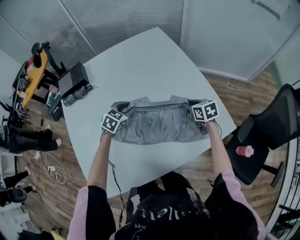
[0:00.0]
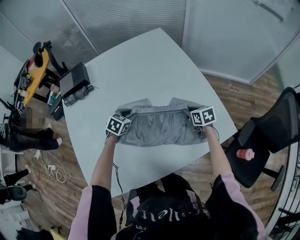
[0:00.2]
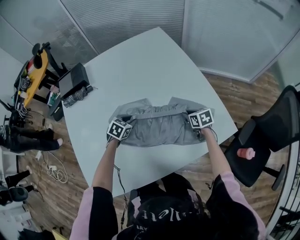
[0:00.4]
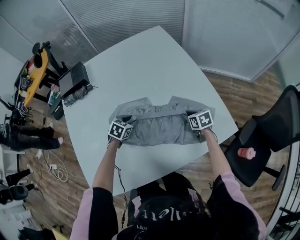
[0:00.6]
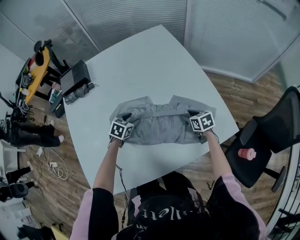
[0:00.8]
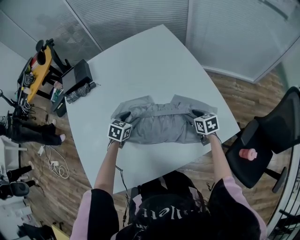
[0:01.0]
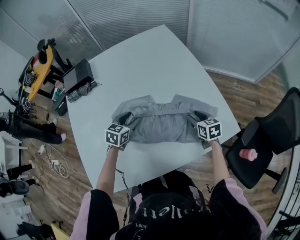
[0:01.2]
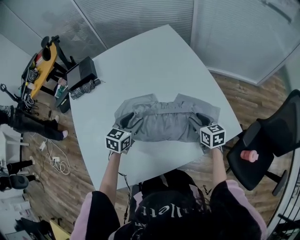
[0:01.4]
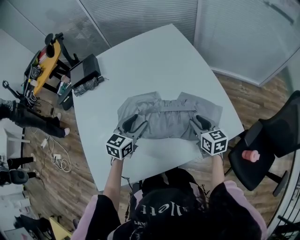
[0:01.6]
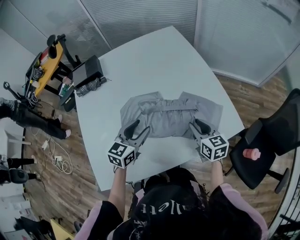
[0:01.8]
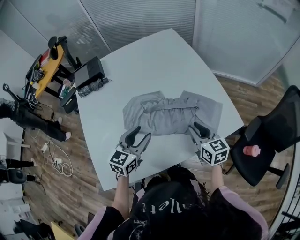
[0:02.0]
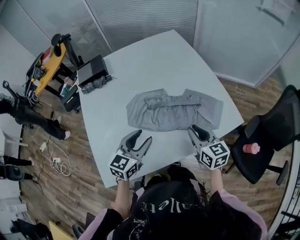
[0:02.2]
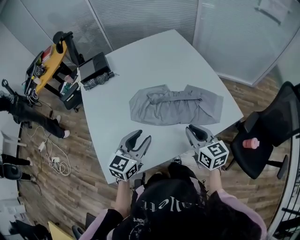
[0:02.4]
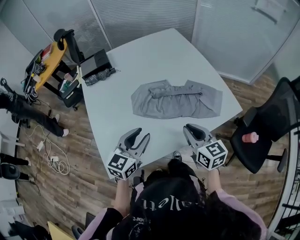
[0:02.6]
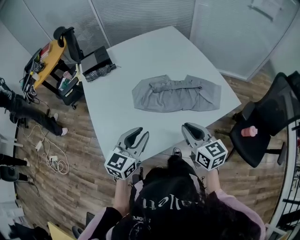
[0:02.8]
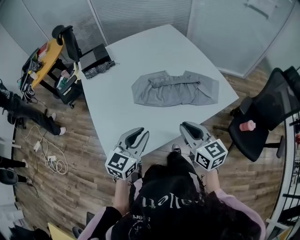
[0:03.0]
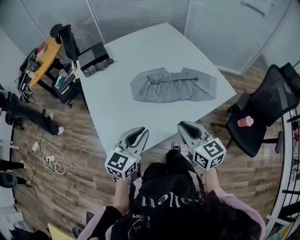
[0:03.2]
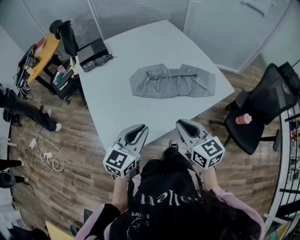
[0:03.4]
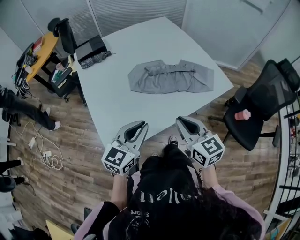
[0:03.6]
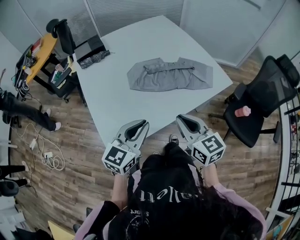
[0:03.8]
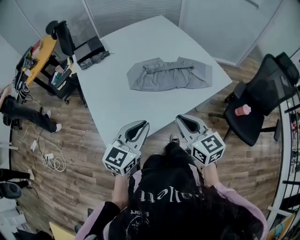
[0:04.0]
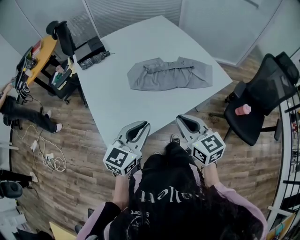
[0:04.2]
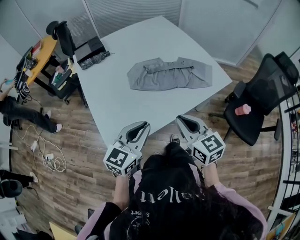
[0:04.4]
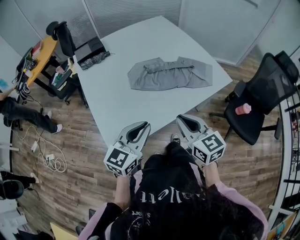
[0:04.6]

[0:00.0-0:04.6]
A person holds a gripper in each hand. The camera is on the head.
0:00.0 to 0:01.6: The left gripper shifts about 15 cm backward and upward, swivels approximately 30 degrees, and opens its fingers. Meanwhile the right gripper travels backward by approximately 10 cm, and goes downward and returns, some 10 cm each way.
0:01.6 to 0:03.0: The right gripper goes approximately 35 cm backward, to the left and upward, and closes. Meanwhile the left gripper shifts roughly 25 cm backward, and closes.
0:03.0 to 0:04.6: Both grippers move backward, some 5 cm.

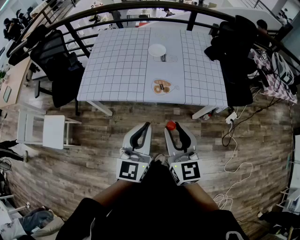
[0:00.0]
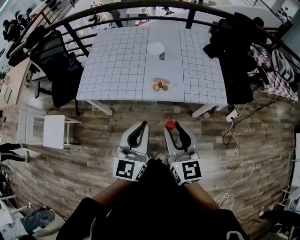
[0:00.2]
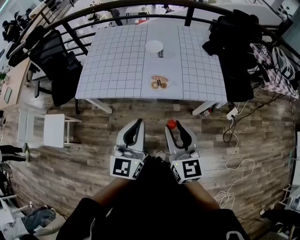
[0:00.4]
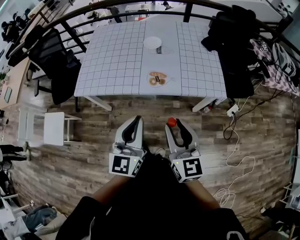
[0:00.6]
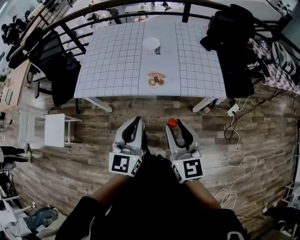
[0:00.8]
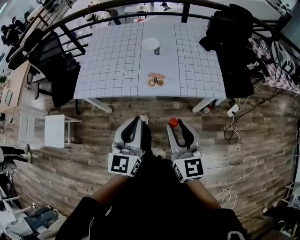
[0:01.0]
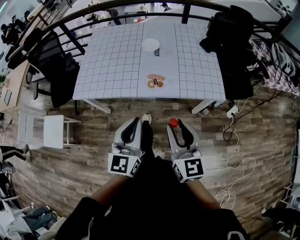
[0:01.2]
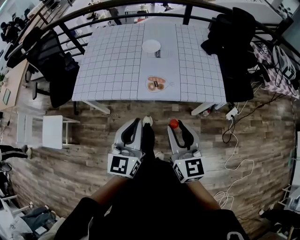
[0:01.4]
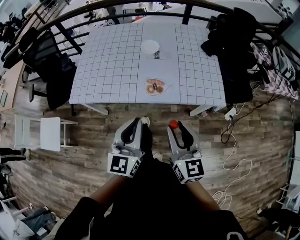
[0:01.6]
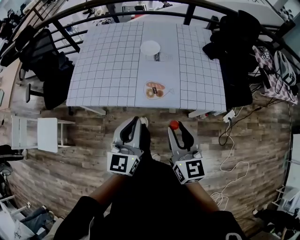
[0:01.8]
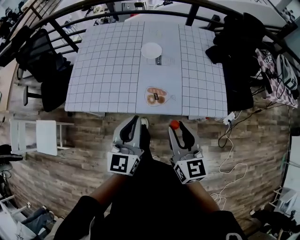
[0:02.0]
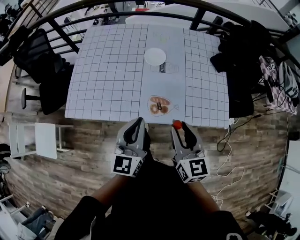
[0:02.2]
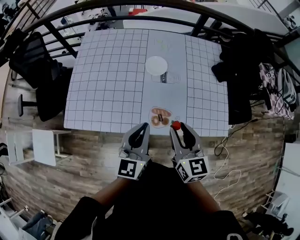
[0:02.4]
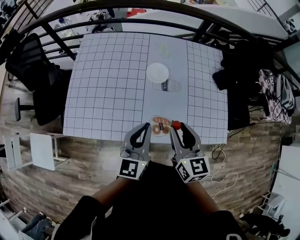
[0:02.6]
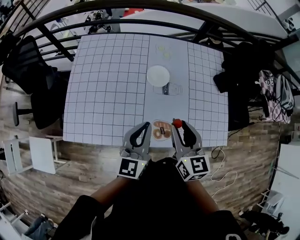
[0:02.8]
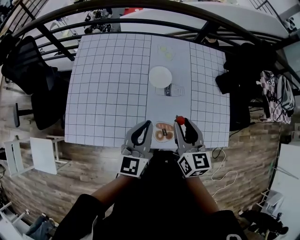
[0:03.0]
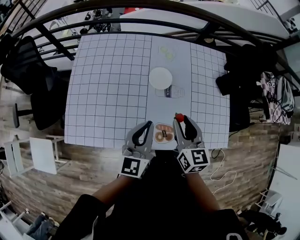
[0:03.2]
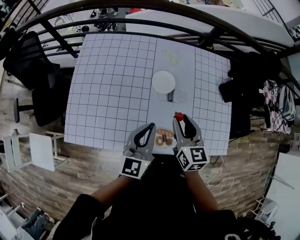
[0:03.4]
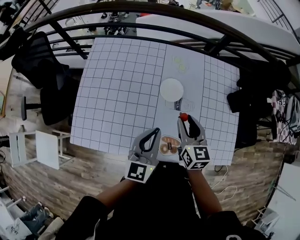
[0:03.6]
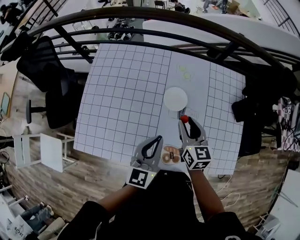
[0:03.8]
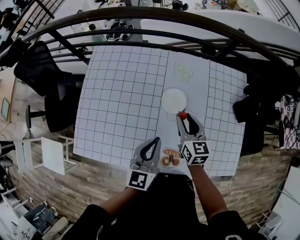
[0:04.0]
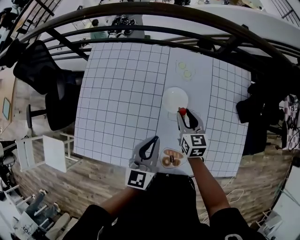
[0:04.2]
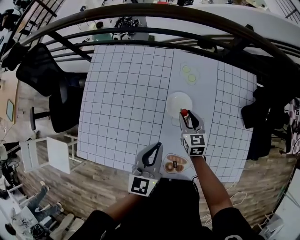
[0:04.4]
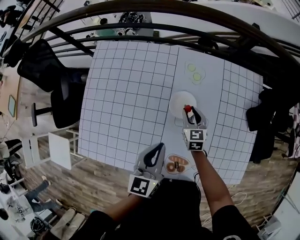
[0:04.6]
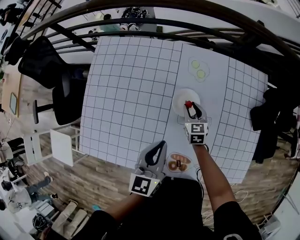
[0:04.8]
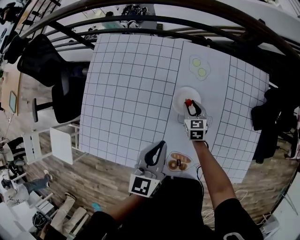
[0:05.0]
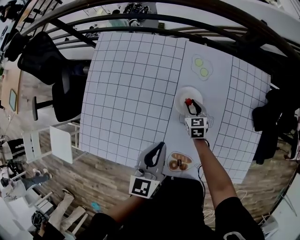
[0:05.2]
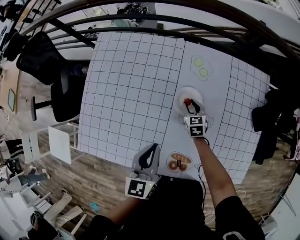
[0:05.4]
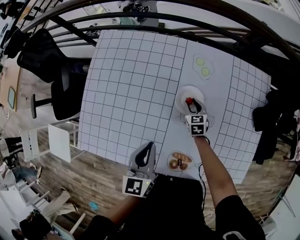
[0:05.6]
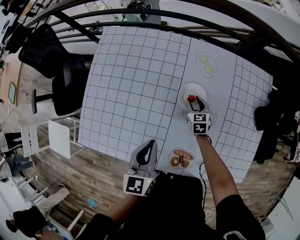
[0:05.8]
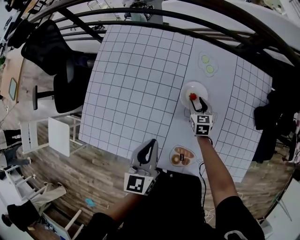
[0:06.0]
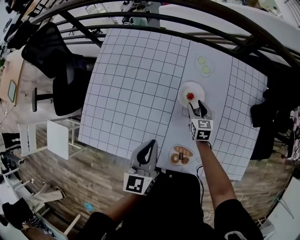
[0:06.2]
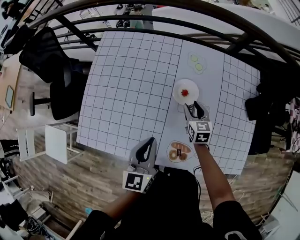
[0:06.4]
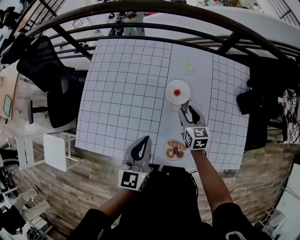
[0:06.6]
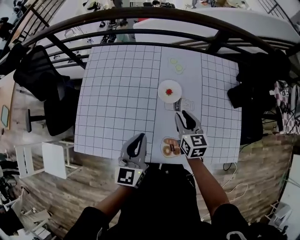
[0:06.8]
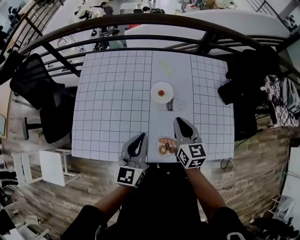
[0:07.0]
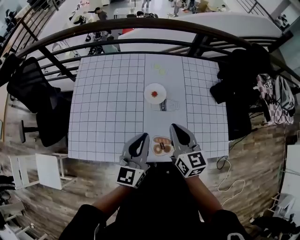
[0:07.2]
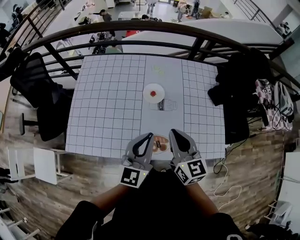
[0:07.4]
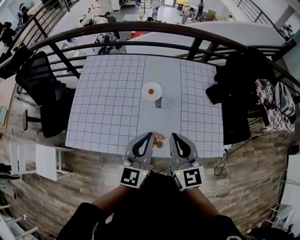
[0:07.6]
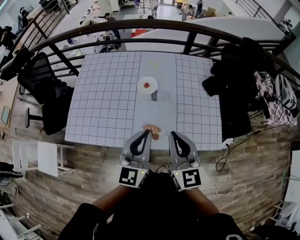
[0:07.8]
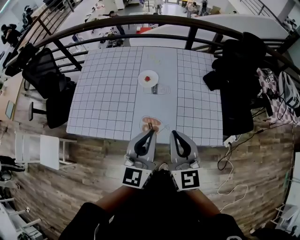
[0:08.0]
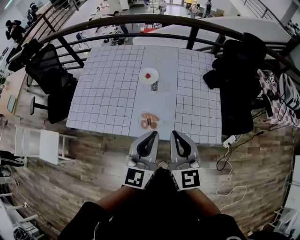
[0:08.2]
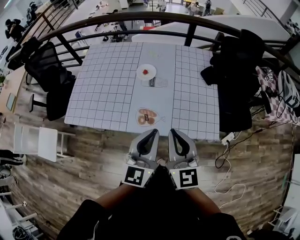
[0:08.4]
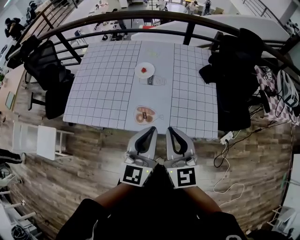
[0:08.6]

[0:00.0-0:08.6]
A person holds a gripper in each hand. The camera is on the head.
0:00.0 to 0:01.4: The right gripper heads to the right, covering about 5 cm.
0:01.4 to 0:02.8: Both grippers move forward, some 35 cm.
0:02.8 to 0:04.4: The left gripper is displaced forward and downward by approximately 15 cm. The right gripper goes roughly 35 cm forward and downward.
0:04.4 to 0:05.8: The right gripper moves downward, approximately 15 cm; the left gripper moves to the left, about 5 cm.
0:05.8 to 0:07.2: The left gripper heads upward, backward and to the right, covering approximately 15 cm, and turns by approximately 30 degrees. Meanwhile the right gripper is displaced upward and backward by approximately 40 cm, turns by roughly 30 degrees, and closes its fingers.
0:07.2 to 0:08.6: The grippers both shift backward and to the right by about 25 cm.

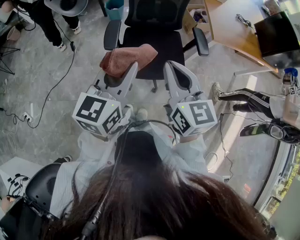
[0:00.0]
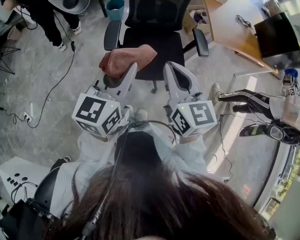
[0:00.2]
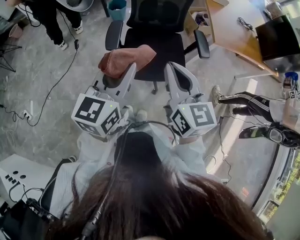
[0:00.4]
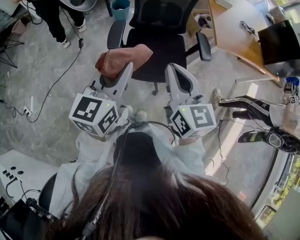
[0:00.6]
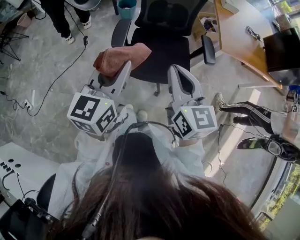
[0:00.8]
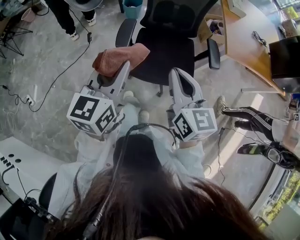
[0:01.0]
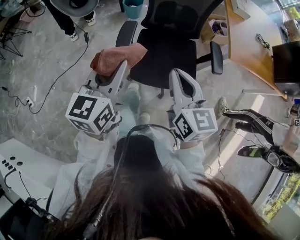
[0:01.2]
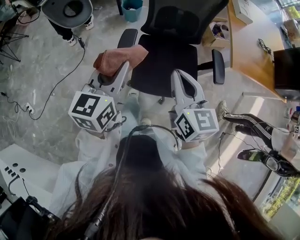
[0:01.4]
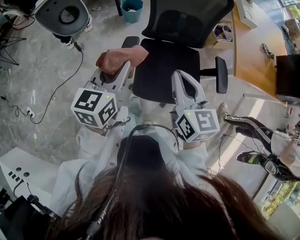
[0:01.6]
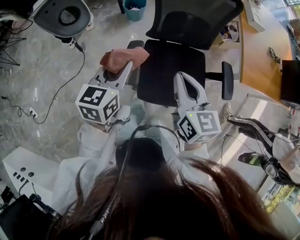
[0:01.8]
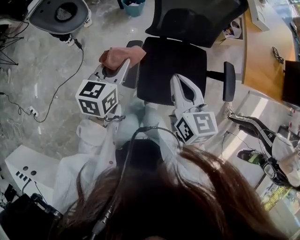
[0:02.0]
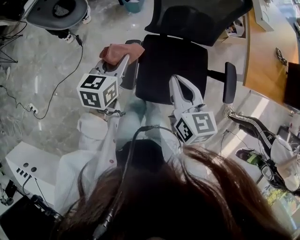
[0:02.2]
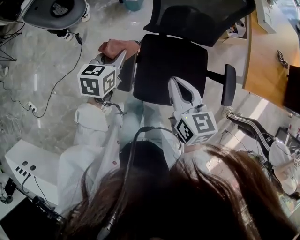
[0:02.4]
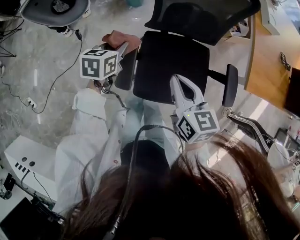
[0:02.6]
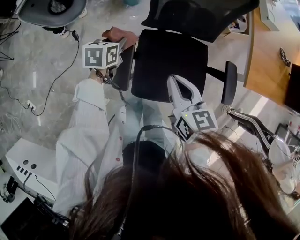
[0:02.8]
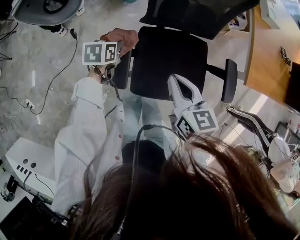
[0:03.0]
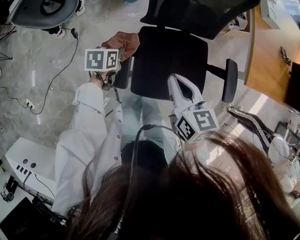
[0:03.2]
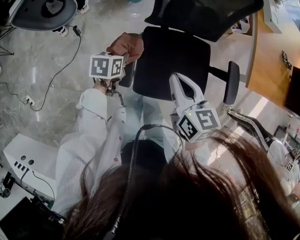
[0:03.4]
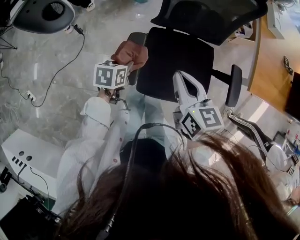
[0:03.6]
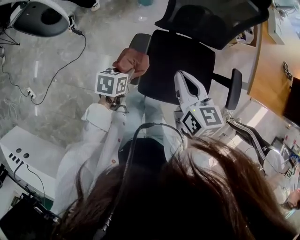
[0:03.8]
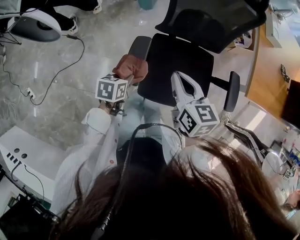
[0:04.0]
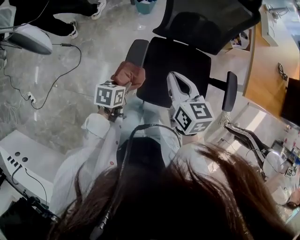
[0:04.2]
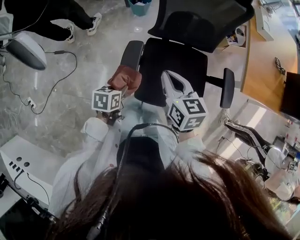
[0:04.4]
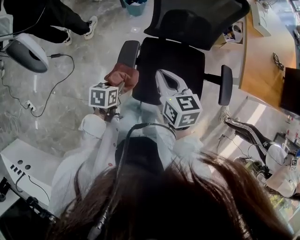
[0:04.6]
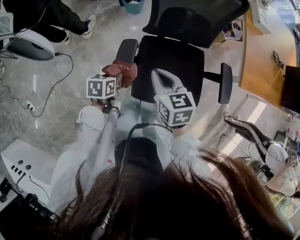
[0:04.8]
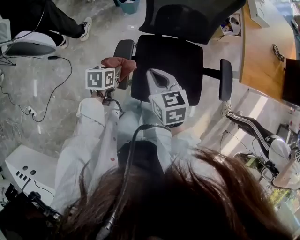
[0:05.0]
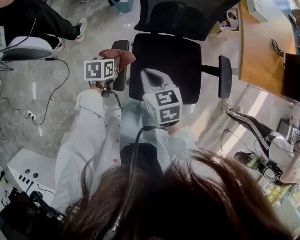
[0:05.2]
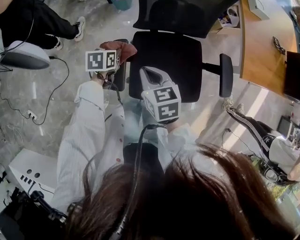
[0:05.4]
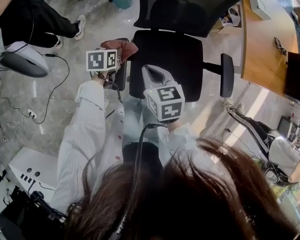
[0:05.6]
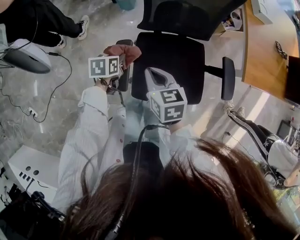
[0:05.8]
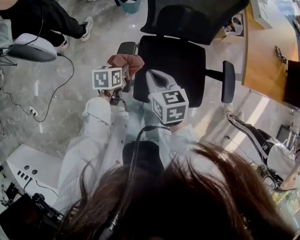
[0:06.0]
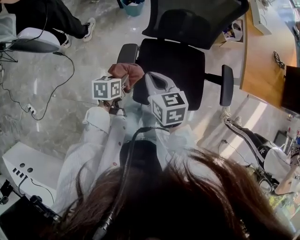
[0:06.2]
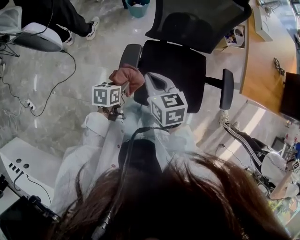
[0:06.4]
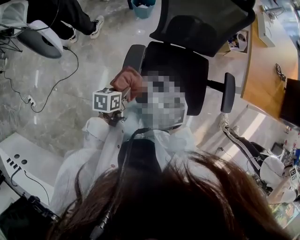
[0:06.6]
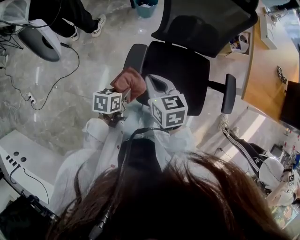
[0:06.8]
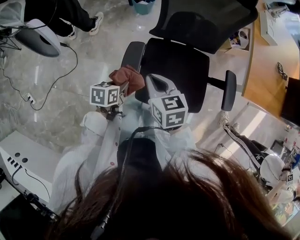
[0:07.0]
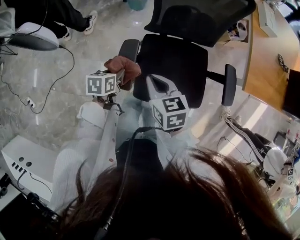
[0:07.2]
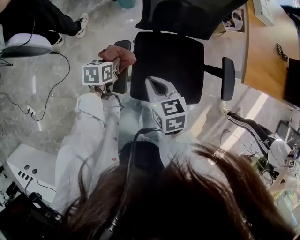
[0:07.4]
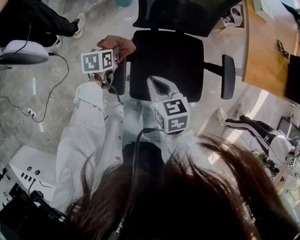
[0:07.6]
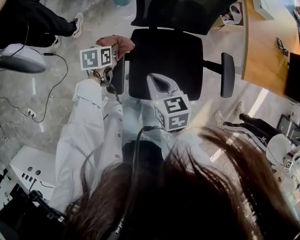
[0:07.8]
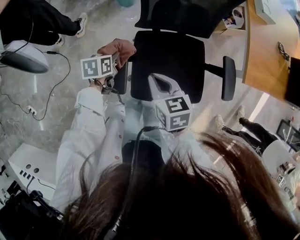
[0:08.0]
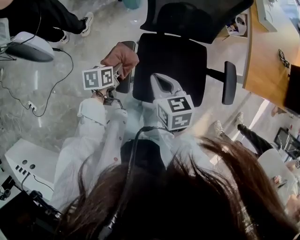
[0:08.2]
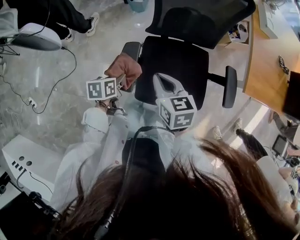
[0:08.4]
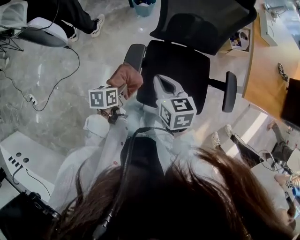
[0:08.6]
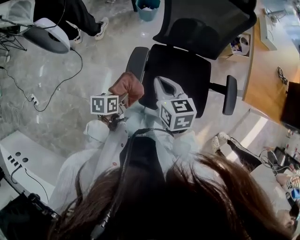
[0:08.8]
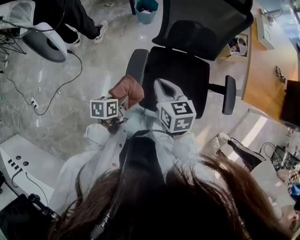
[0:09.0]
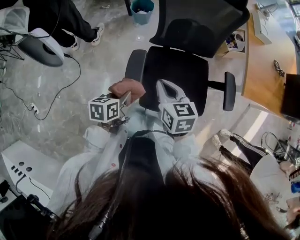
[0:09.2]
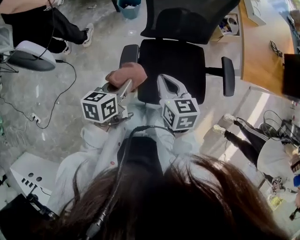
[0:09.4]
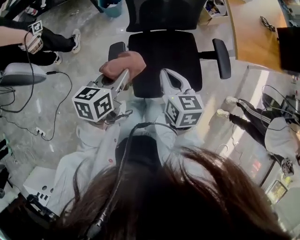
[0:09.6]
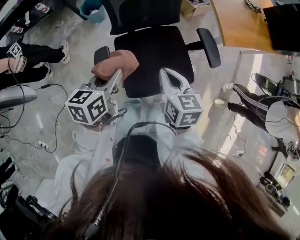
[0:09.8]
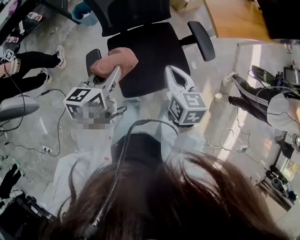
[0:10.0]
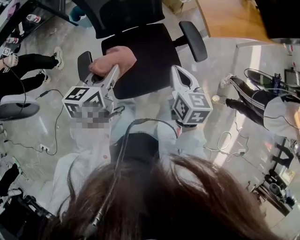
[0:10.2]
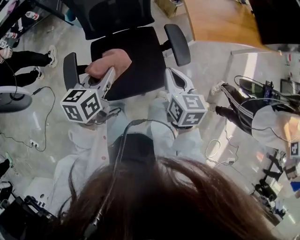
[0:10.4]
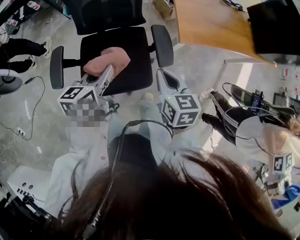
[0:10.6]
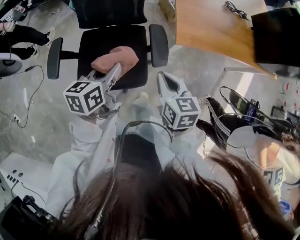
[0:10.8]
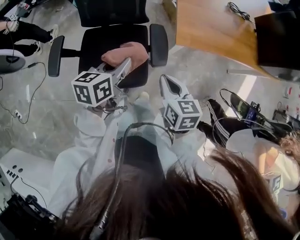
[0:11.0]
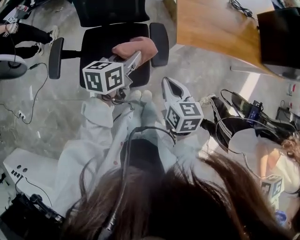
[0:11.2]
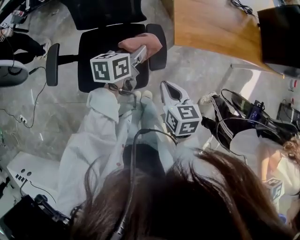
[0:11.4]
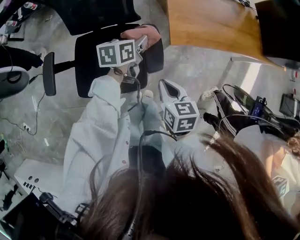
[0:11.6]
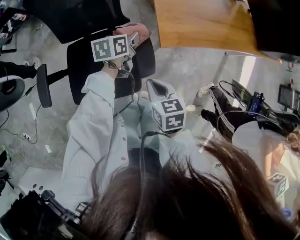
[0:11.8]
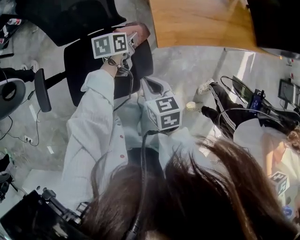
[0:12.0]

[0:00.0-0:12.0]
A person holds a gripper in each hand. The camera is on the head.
0:00.0 to 0:01.6: The left gripper moves forward and to the left, about 25 cm. Meanwhile the right gripper shifts some 20 cm forward.
0:01.6 to 0:03.0: The right gripper shifts some 15 cm downward and forward. Meanwhile the left gripper goes roughly 30 cm downward and forward, and tips its fingers downward by some 40 degrees.
0:03.0 to 0:04.4: The left gripper moves backward, roughly 20 cm.
0:04.4 to 0:06.0: The left gripper moves forward, approximately 10 cm; the right gripper goes roughly 5 cm downward.
0:06.0 to 0:07.6: The left gripper shifts roughly 10 cm forward.
0:07.6 to 0:09.0: The left gripper heads backward, covering about 20 cm. The right gripper goes roughly 5 cm upward.
0:09.0 to 0:10.4: The right gripper goes some 35 cm to the right, and changes its angle by roughly 30 degrees. Meanwhile the left gripper heads to the right, upward and forward, covering some 35 cm, and changes its angle by approximately 30 degrees.
0:10.4 to 0:12.0: The left gripper moves to the right, forward and downward, roughly 40 cm. Meanwhile the right gripper goes some 15 cm to the right and downward.
